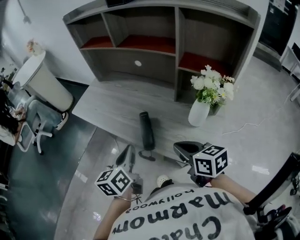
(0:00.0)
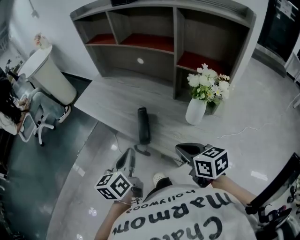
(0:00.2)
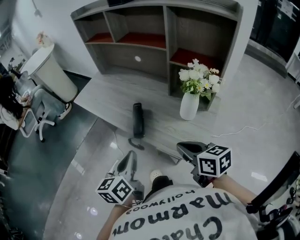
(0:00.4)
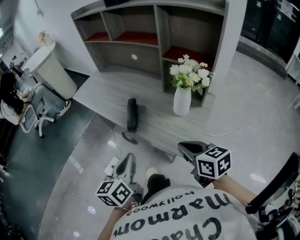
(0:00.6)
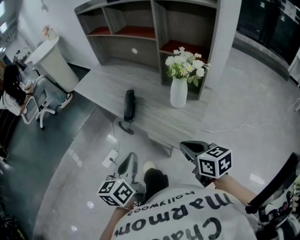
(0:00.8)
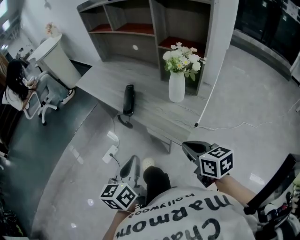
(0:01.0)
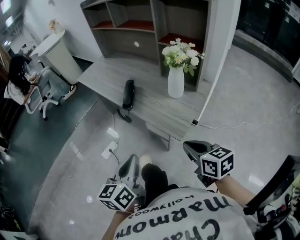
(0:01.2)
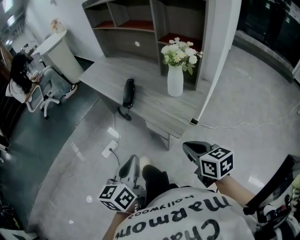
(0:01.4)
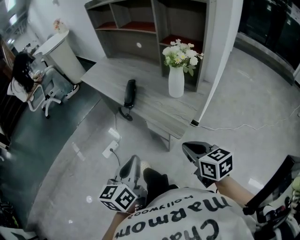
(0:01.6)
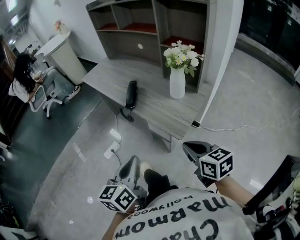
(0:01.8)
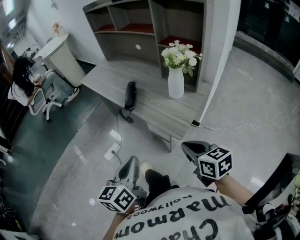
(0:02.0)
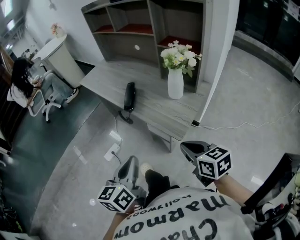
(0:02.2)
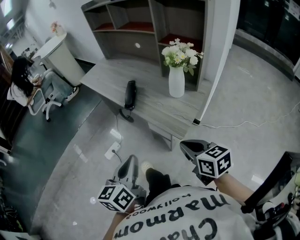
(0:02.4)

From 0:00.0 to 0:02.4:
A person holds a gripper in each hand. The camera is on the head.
From 0:00.0 to 0:01.2: The right gripper goes some 25 cm backward and to the right; the left gripper is displaced backward by some 30 cm.
From 0:01.2 to 0:02.4: The grippers stay close to where they were, moving slightly.

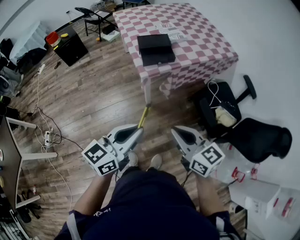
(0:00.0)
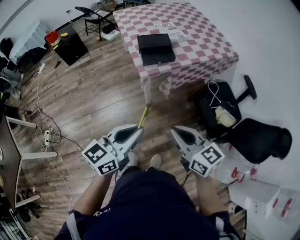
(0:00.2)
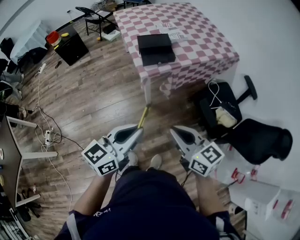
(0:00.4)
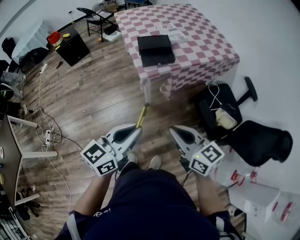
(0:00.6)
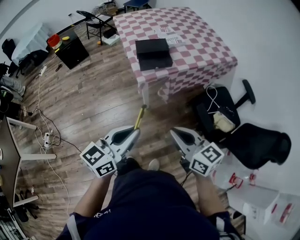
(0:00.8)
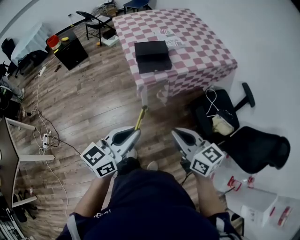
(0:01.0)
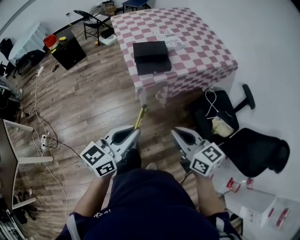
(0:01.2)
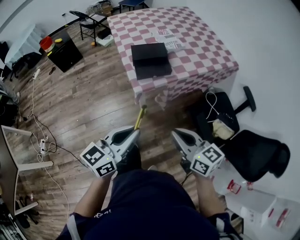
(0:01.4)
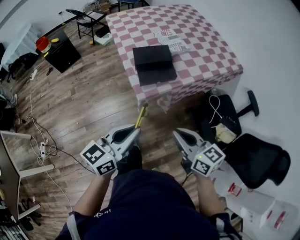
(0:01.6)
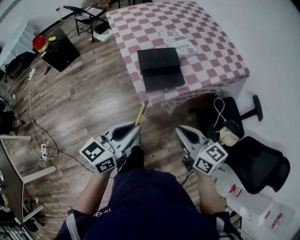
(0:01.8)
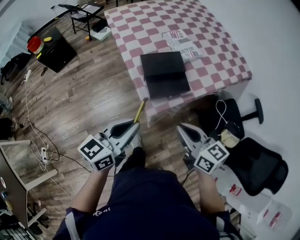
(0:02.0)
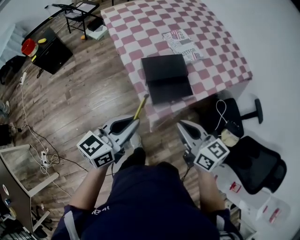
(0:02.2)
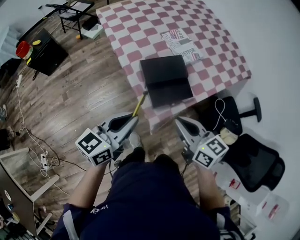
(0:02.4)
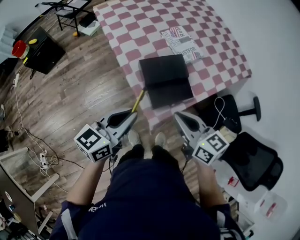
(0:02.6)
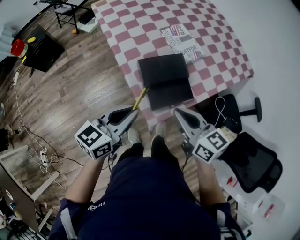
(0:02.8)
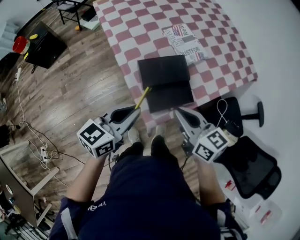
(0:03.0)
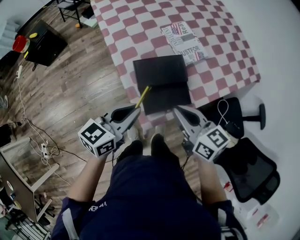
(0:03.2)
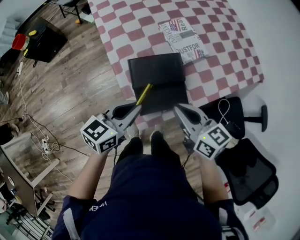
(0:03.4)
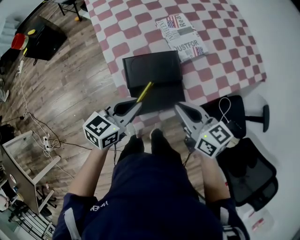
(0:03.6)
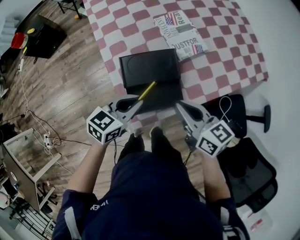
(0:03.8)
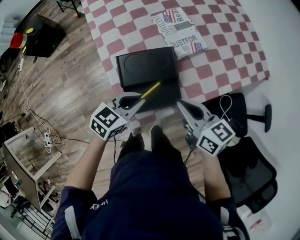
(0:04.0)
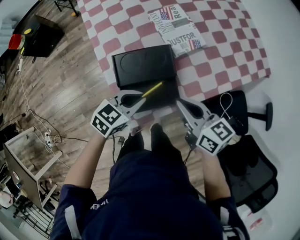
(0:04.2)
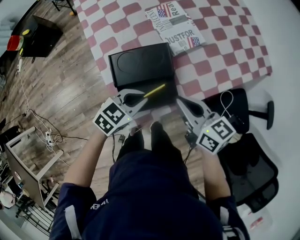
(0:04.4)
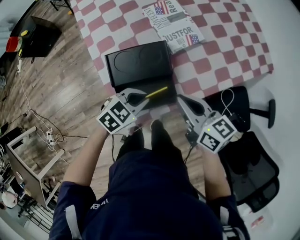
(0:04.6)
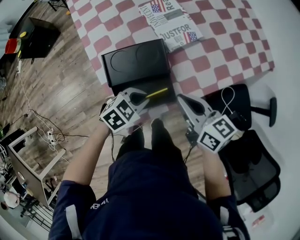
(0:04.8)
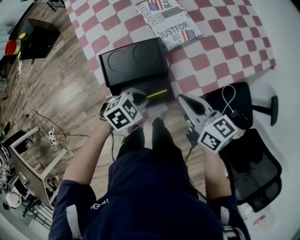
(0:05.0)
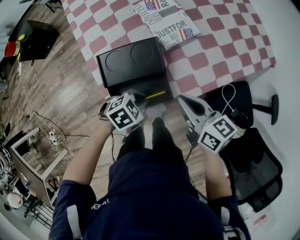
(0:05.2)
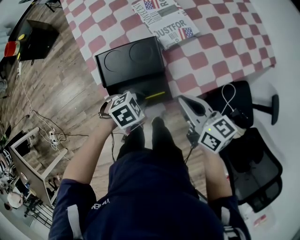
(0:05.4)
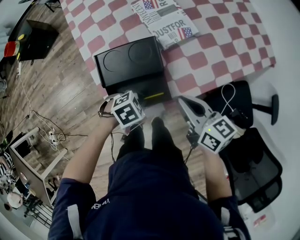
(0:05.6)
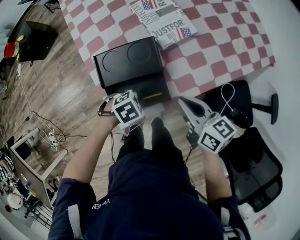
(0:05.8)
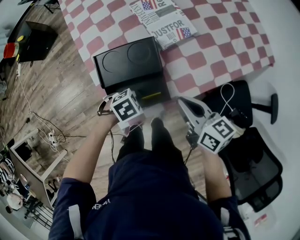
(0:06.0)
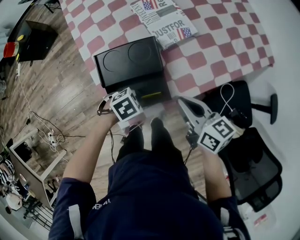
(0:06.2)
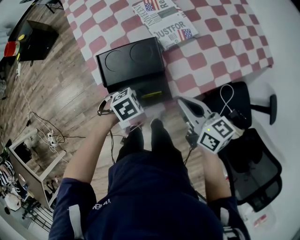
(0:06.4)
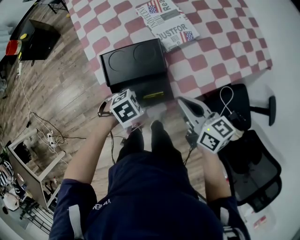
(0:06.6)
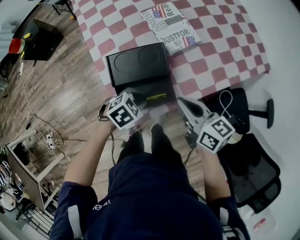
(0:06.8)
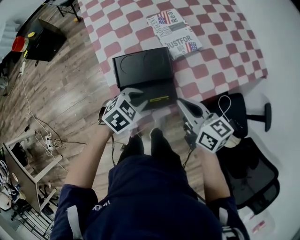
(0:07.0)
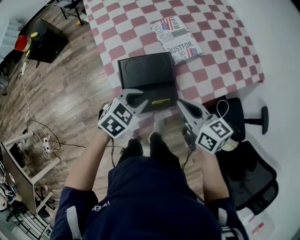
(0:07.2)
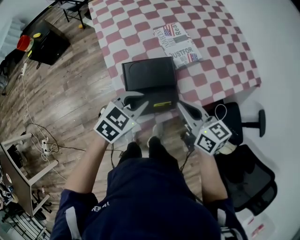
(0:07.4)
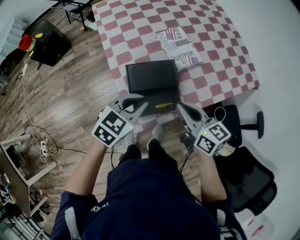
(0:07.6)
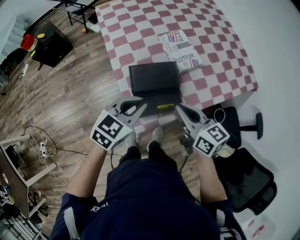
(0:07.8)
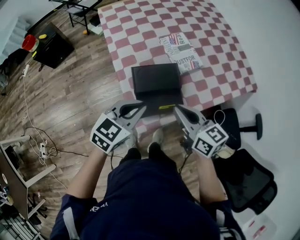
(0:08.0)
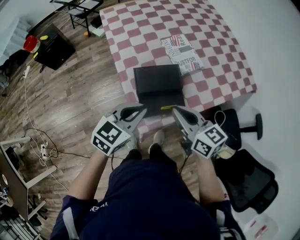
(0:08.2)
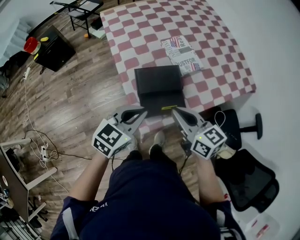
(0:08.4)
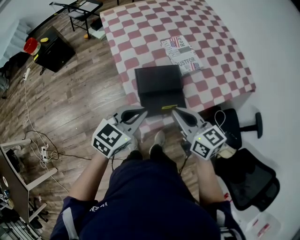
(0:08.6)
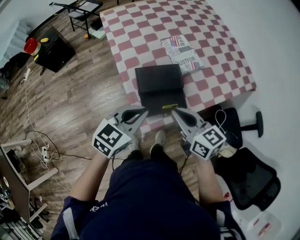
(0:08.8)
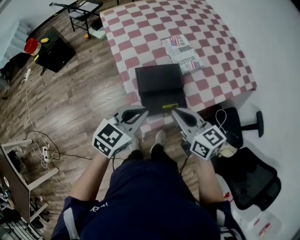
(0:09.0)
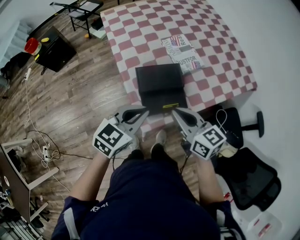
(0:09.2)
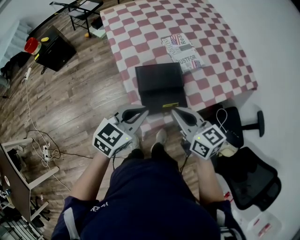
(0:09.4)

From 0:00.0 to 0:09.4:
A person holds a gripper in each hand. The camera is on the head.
From 0:00.0 to 0:01.6: The two grippers go roughly 20 cm forward.
From 0:01.6 to 0:03.2: Both grippers travel together forward, about 30 cm.
From 0:03.2 to 0:04.8: The left gripper travels downward and to the right by roughly 25 cm, and points its fingers about 40 degrees further downward. Meanwhile the right gripper moves to the right, downward and forward, roughly 15 cm.
From 0:04.8 to 0:06.2: The left gripper moves downward, approximately 5 cm, and rotates about 20 degrees.
From 0:06.2 to 0:07.8: The right gripper moves upward, roughly 10 cm. Meanwhile the left gripper heads upward, covering about 25 cm, and angles its fingers upward, by roughly 40 degrees.
From 0:07.8 to 0:09.4: The left gripper ends up approximately 5 cm from where it was. The right gripper shifts by approximately 5 cm.

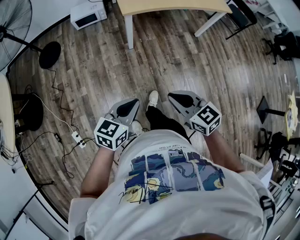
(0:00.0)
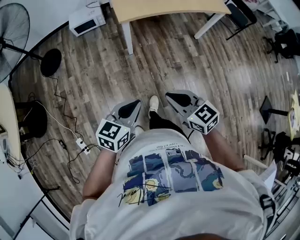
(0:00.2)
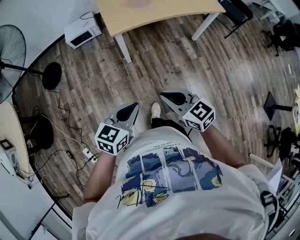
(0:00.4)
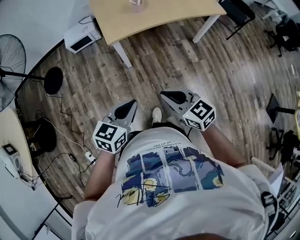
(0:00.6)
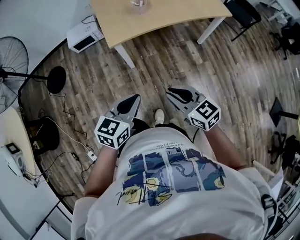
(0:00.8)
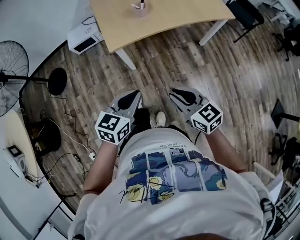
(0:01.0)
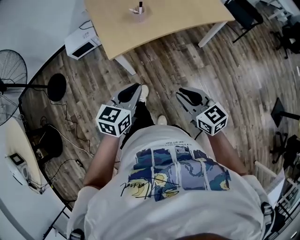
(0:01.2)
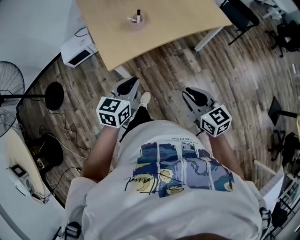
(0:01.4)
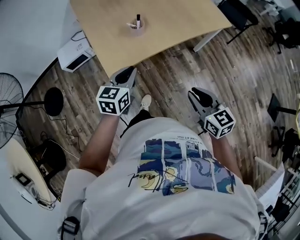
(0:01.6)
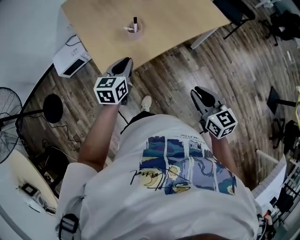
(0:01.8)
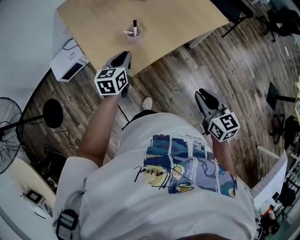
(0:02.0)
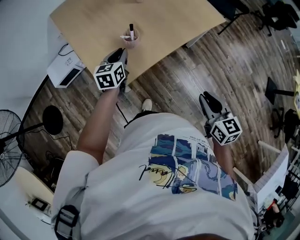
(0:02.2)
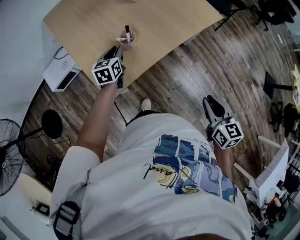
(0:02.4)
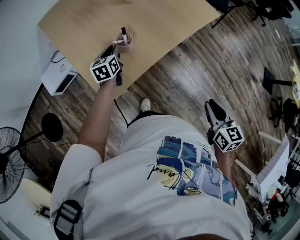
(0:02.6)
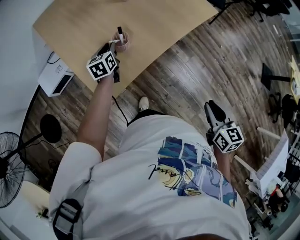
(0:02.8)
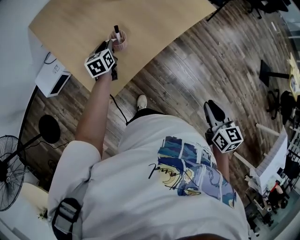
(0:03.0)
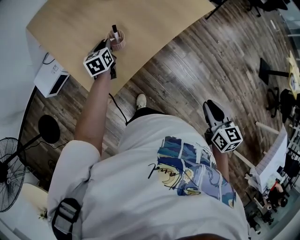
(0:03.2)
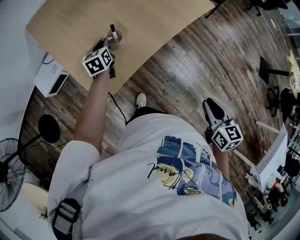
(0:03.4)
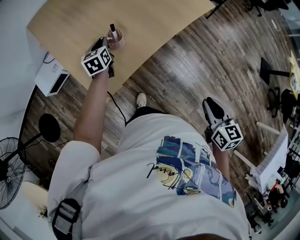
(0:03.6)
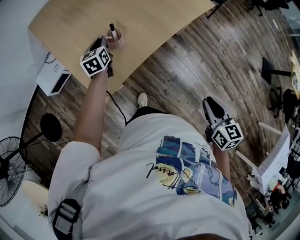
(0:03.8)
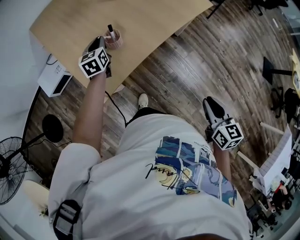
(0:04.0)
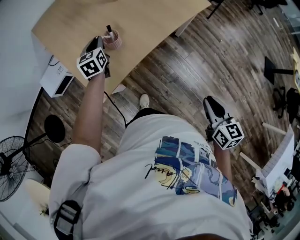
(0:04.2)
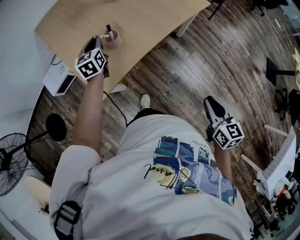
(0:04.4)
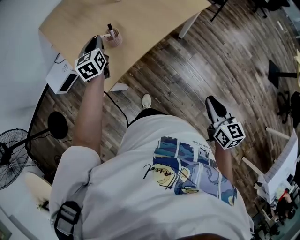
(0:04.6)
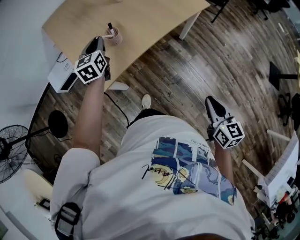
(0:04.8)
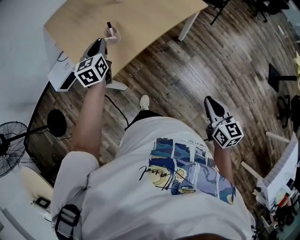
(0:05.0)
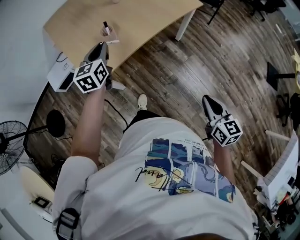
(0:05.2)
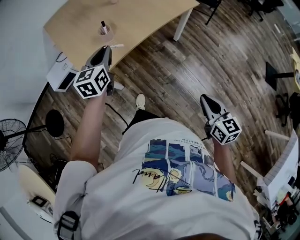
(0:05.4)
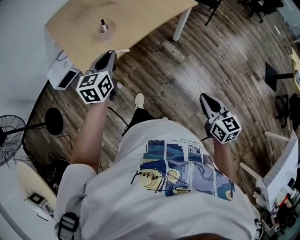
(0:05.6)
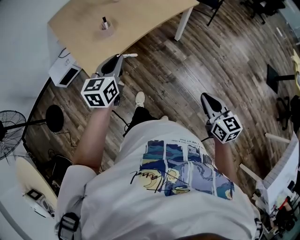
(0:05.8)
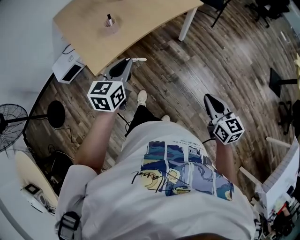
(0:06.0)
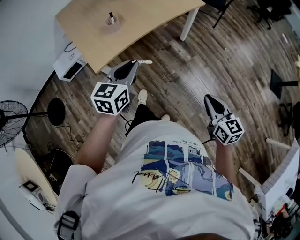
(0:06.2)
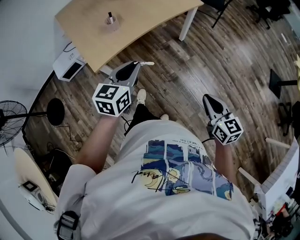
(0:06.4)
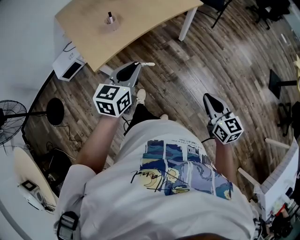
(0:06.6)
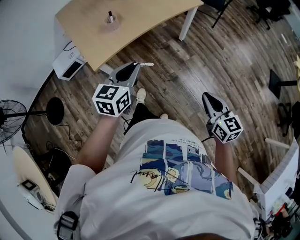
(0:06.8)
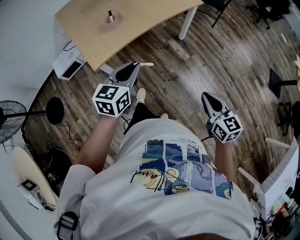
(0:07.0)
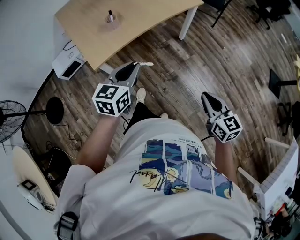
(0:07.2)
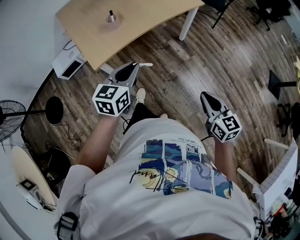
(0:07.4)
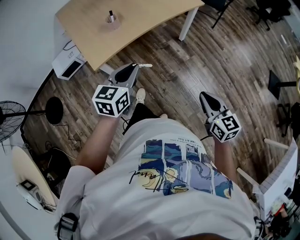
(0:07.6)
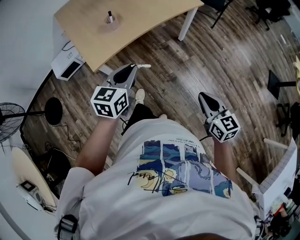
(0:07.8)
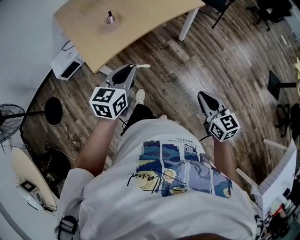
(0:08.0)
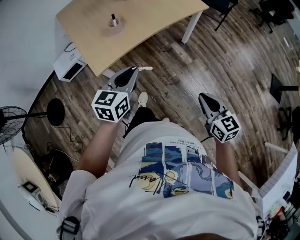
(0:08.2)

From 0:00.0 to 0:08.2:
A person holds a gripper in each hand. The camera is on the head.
From 0:00.0 to 0:01.6: The two grippers travel together, forward, roughly 50 cm. The right gripper rotates approximately 30 degrees.
From 0:01.6 to 0:03.2: The left gripper travels forward and downward by about 30 cm, while the right gripper travels to the right by approximately 5 cm, and rotates about 30 degrees.
From 0:03.2 to 0:05.0: The right gripper goes some 10 cm backward and to the right. Meanwhile the left gripper travels upward and backward by roughly 20 cm.
From 0:05.0 to 0:06.6: The left gripper moves backward and to the right, approximately 35 cm, and swivels approximately 20 degrees, while the right gripper heads backward and to the right, covering some 10 cm.
From 0:06.6 to 0:08.2: The right gripper ends up approximately 5 cm from where it was.

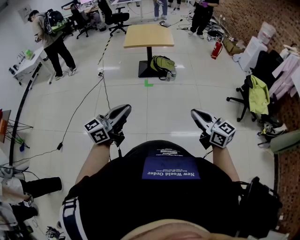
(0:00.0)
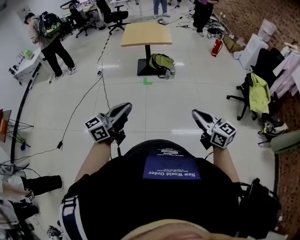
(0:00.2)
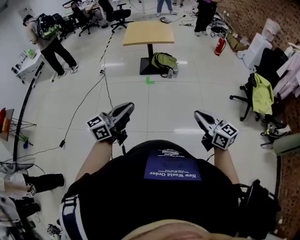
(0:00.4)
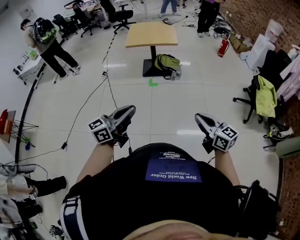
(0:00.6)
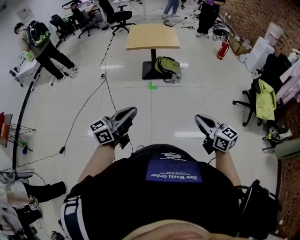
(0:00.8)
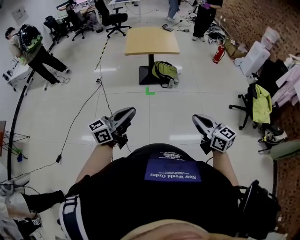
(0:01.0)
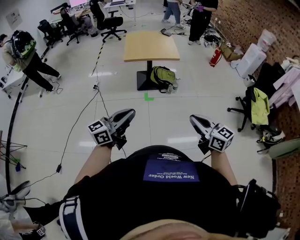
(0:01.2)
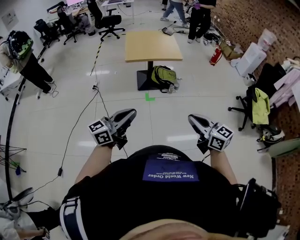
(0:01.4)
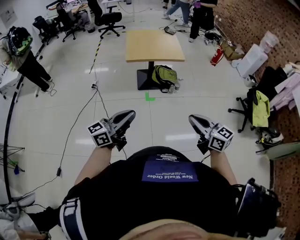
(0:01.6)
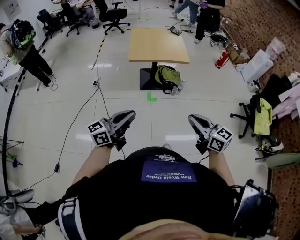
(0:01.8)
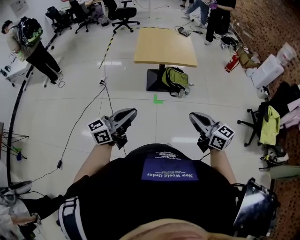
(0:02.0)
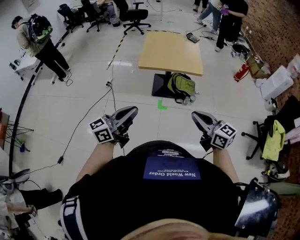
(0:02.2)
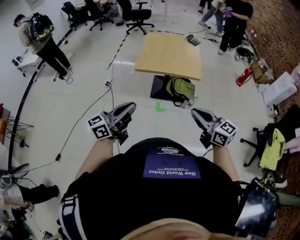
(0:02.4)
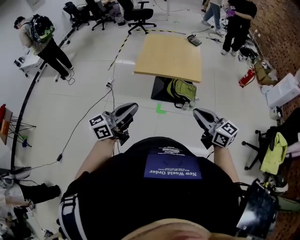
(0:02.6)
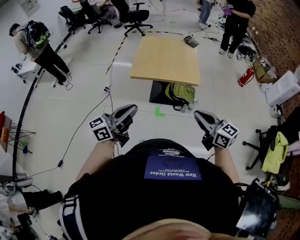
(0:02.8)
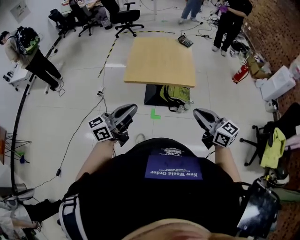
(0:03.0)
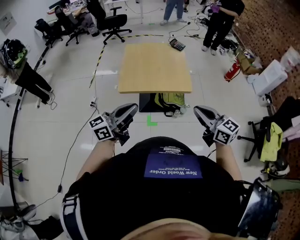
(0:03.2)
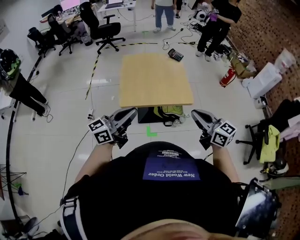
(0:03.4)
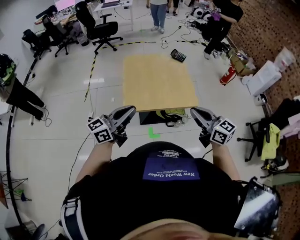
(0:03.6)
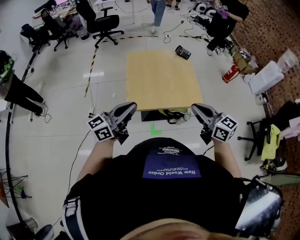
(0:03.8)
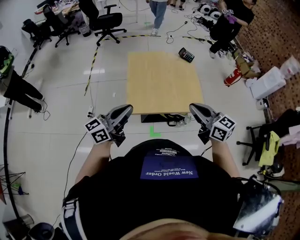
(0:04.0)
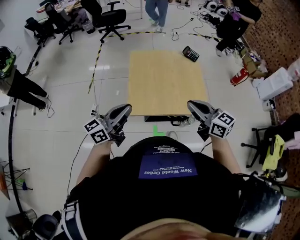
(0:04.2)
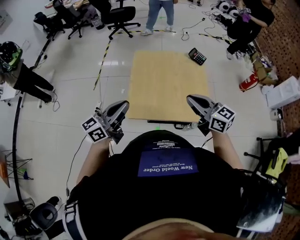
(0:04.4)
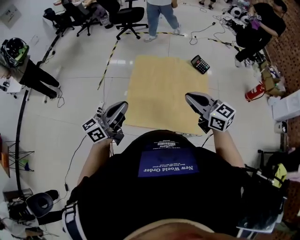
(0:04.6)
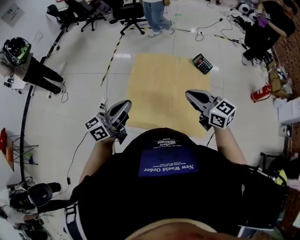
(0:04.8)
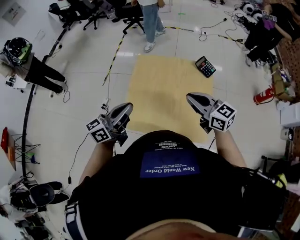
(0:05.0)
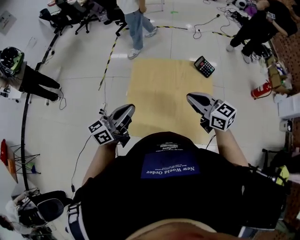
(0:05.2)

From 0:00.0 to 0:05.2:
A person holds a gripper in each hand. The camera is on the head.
From 0:00.0 to 0:01.8: The two grippers travel together, forward and to the left, about 40 cm.
From 0:01.8 to 0:03.4: The pair of grippers is taken forward, roughly 50 cm.
From 0:03.4 to 0:05.2: Both grippers travel together forward, some 40 cm.
